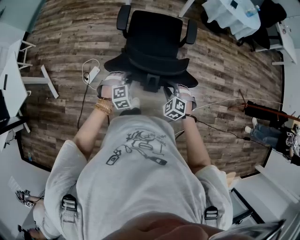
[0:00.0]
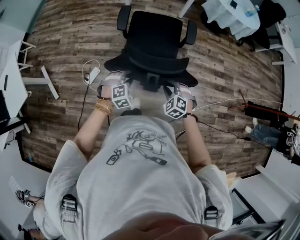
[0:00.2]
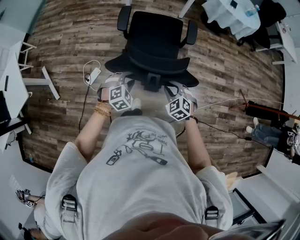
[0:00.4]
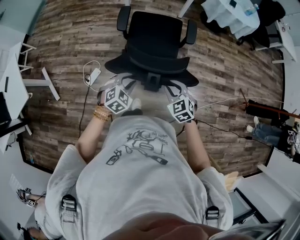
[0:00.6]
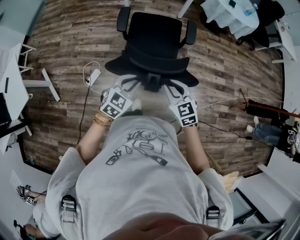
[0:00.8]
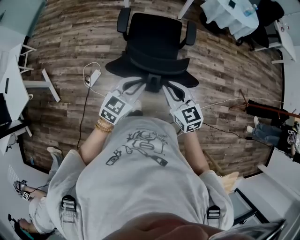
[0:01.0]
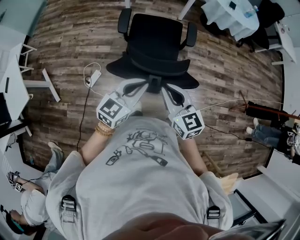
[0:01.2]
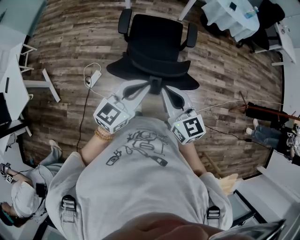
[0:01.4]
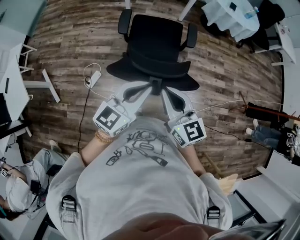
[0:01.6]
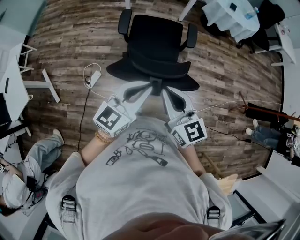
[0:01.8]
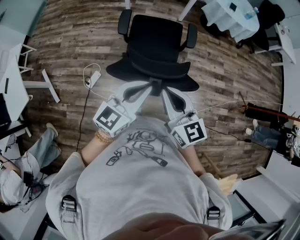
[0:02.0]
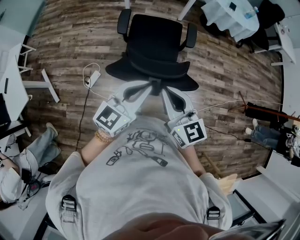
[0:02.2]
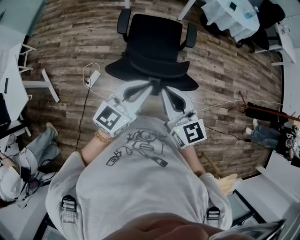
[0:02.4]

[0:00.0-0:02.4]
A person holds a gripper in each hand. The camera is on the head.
0:00.0 to 0:01.2: Both grippers travel together upward, about 25 cm. The left gripper points its fingers some 50 degrees further upward, and closes. The right gripper tilts its fingers roughly 40 degrees upward.
0:01.2 to 0:02.4: The two grippers go some 5 cm upward.

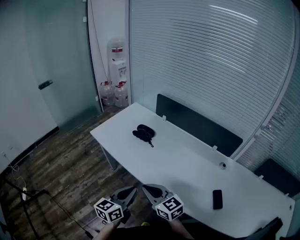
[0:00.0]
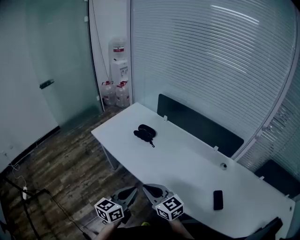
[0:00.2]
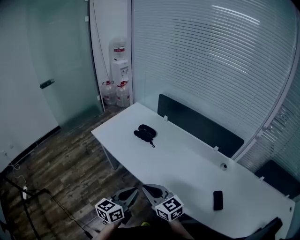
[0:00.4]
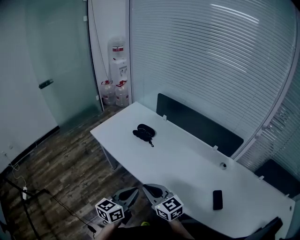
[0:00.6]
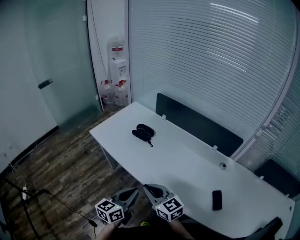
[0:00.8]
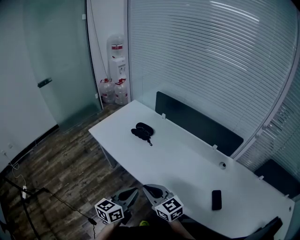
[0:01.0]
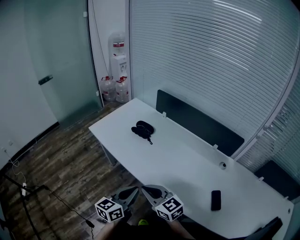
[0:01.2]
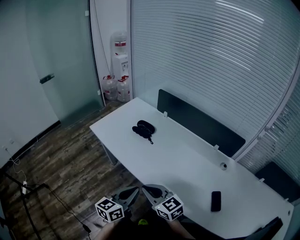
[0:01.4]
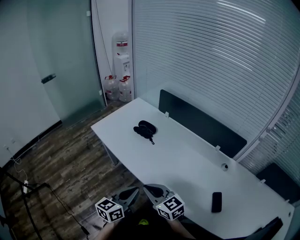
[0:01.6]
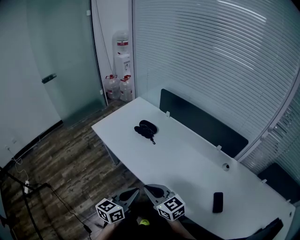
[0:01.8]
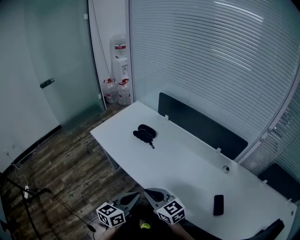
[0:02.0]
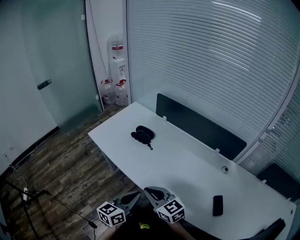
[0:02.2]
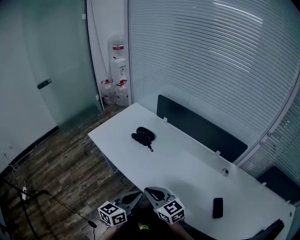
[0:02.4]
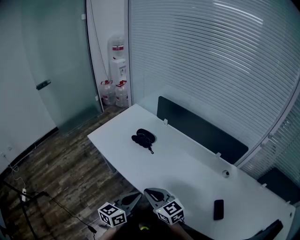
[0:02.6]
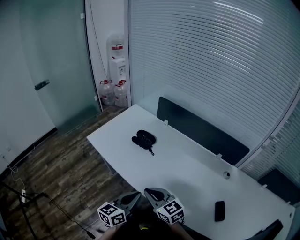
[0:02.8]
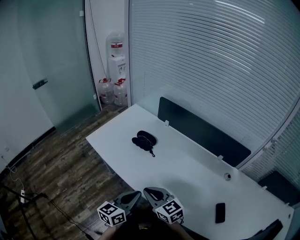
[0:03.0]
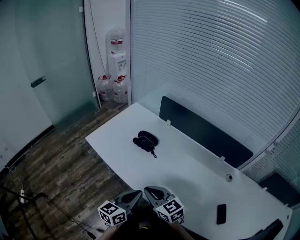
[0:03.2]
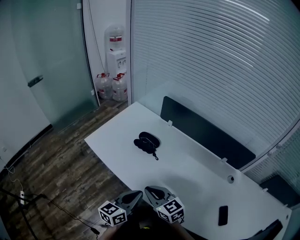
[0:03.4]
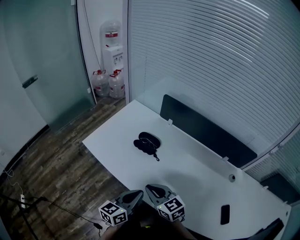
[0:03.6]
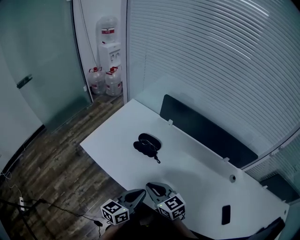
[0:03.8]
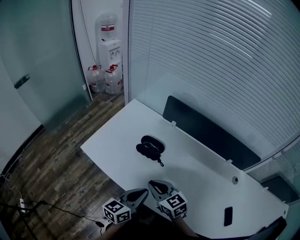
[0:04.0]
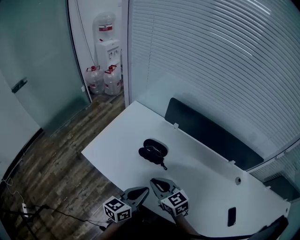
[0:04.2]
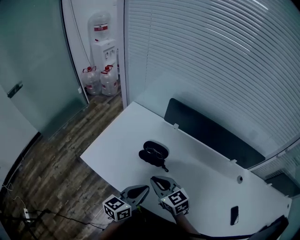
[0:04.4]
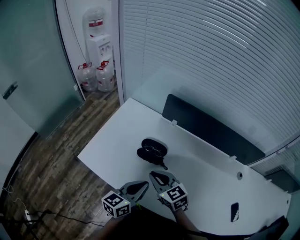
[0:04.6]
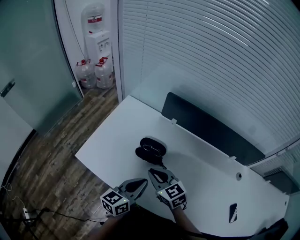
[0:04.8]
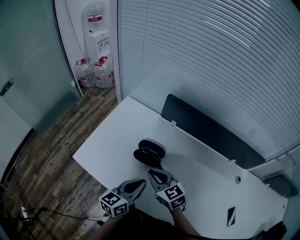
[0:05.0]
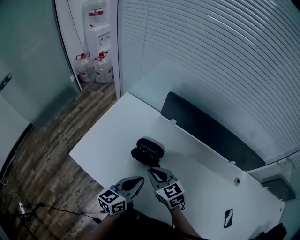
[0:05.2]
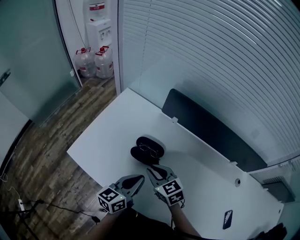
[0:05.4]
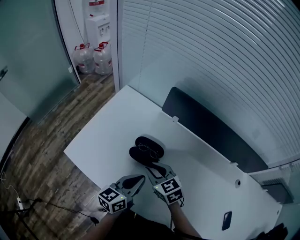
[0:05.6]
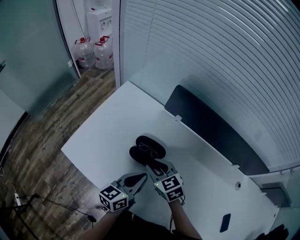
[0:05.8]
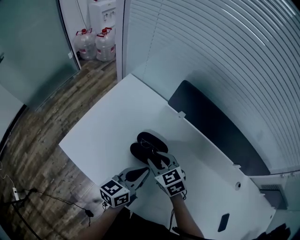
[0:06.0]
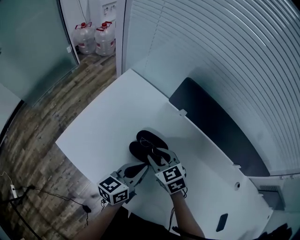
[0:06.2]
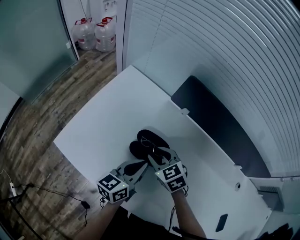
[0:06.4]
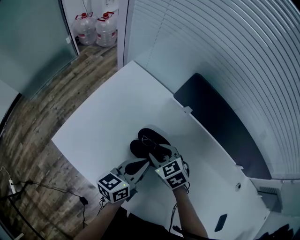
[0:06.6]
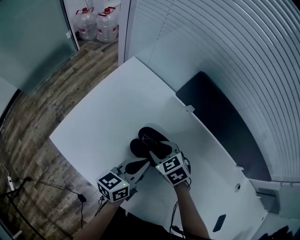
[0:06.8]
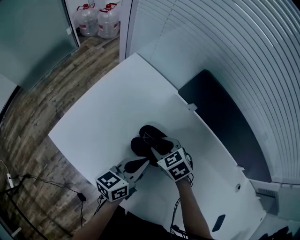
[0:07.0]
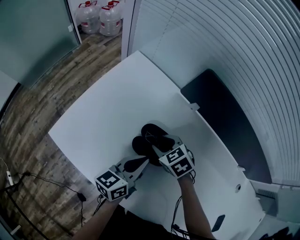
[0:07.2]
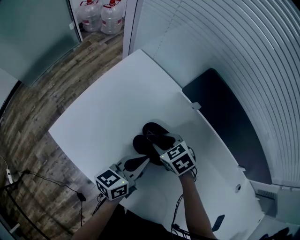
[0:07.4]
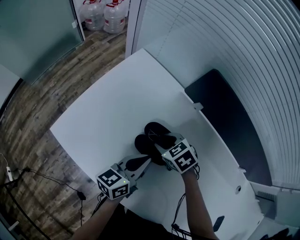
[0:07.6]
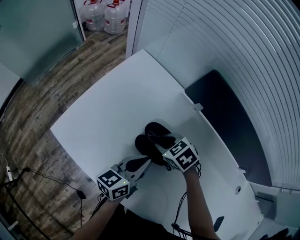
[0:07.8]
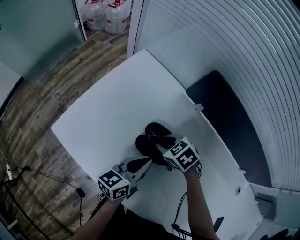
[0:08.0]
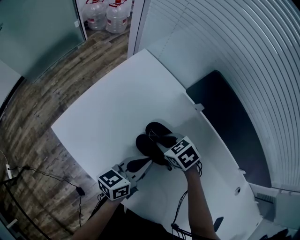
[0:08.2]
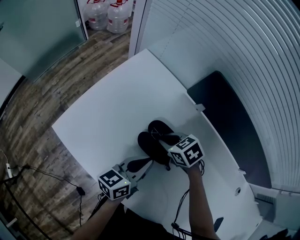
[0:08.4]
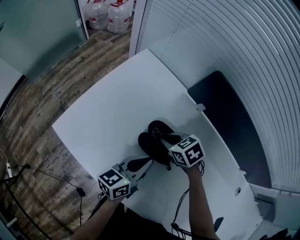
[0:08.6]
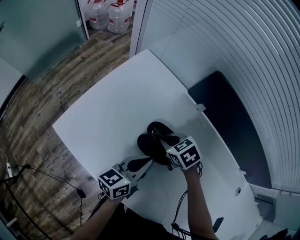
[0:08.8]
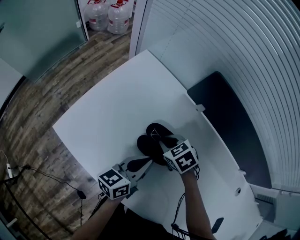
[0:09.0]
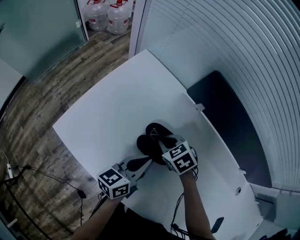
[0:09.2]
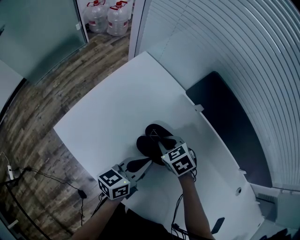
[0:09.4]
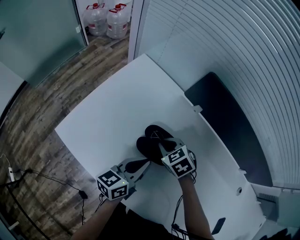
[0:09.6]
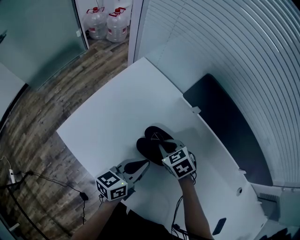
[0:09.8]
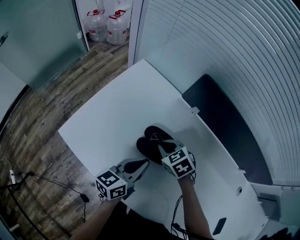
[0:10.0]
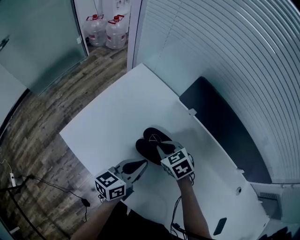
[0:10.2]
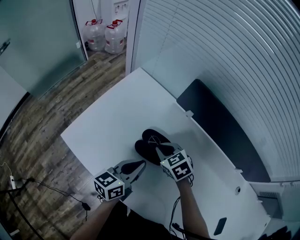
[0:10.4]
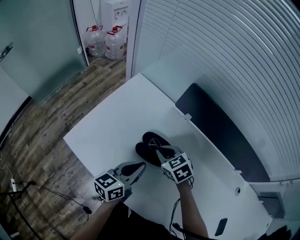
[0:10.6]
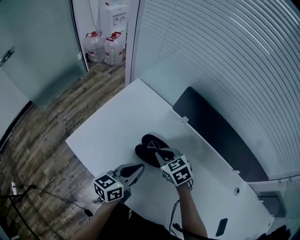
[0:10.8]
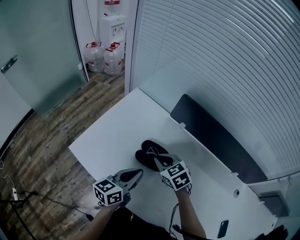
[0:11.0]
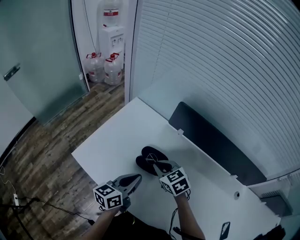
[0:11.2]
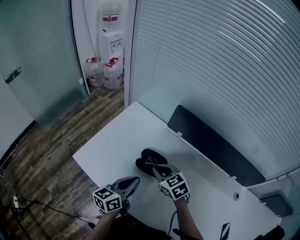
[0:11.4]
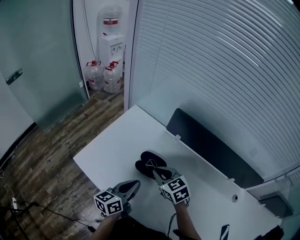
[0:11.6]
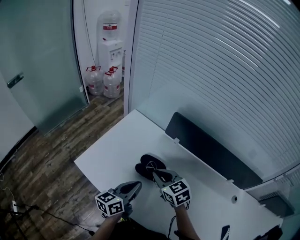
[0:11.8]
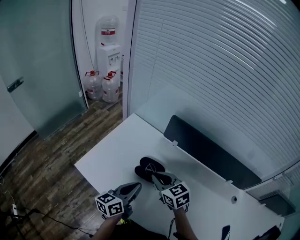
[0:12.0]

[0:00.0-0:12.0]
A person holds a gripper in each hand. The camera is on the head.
0:00.0 to 0:01.6: The grippers move only a little.
0:01.6 to 0:03.0: The two grippers go roughly 10 cm forward.
0:03.0 to 0:04.4: Both grippers move forward, approximately 20 cm.
0:04.4 to 0:06.0: The two grippers go roughly 15 cm forward and downward. The right gripper opens up.
0:06.0 to 0:07.6: The right gripper travels downward by some 5 cm, and turns by some 20 degrees; the left gripper moves some 5 cm.
0:07.6 to 0:09.0: The right gripper closes its fingers.
0:09.0 to 0:10.4: The grippers stay close to where they were, moving slightly.
0:10.4 to 0:12.0: The right gripper travels upward and backward by some 15 cm, and turns by roughly 20 degrees. The left gripper moves upward, some 5 cm.

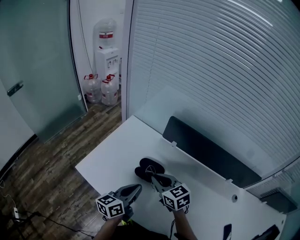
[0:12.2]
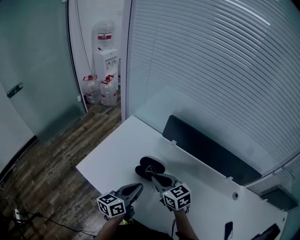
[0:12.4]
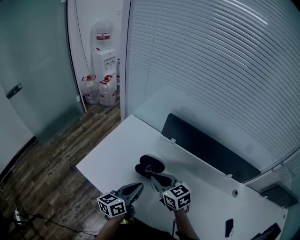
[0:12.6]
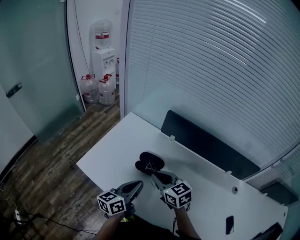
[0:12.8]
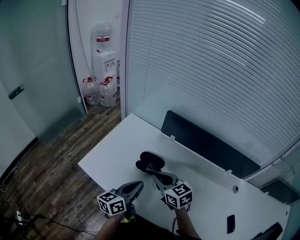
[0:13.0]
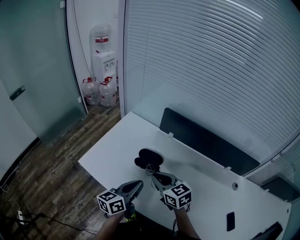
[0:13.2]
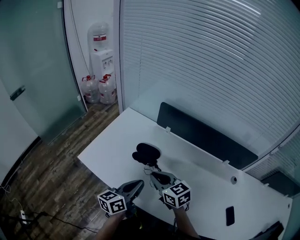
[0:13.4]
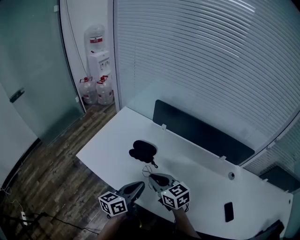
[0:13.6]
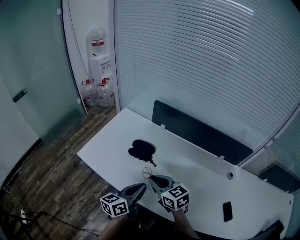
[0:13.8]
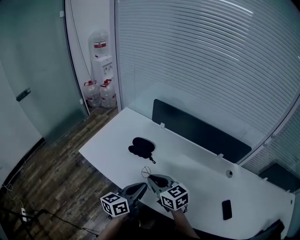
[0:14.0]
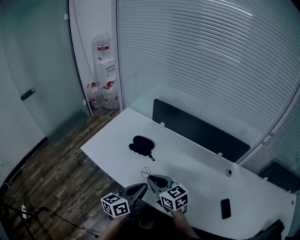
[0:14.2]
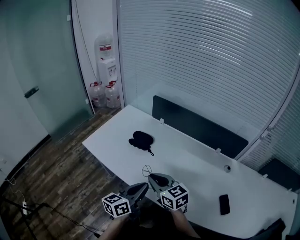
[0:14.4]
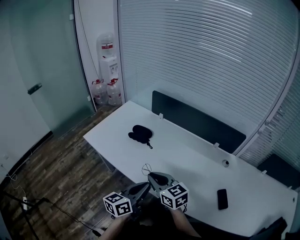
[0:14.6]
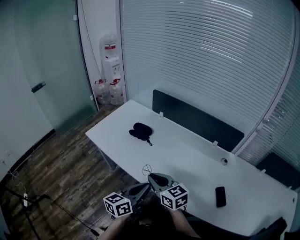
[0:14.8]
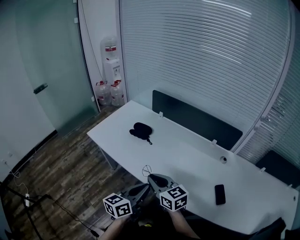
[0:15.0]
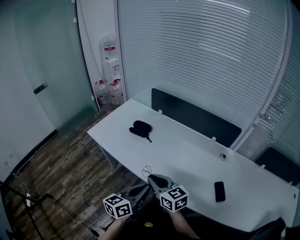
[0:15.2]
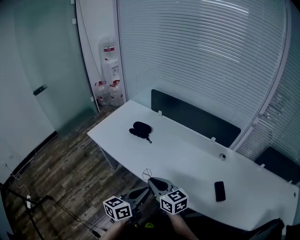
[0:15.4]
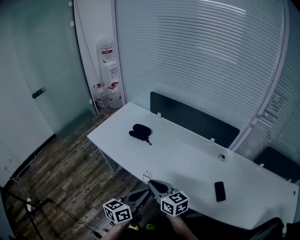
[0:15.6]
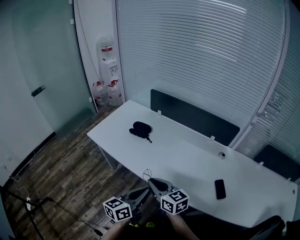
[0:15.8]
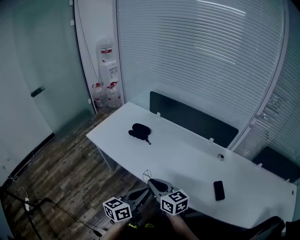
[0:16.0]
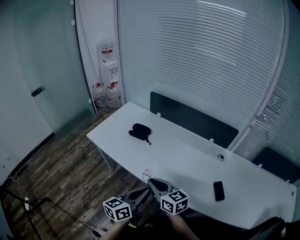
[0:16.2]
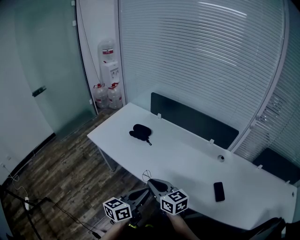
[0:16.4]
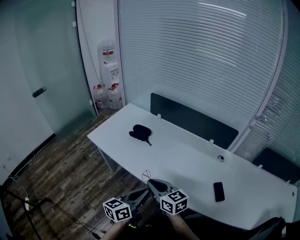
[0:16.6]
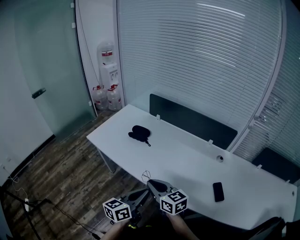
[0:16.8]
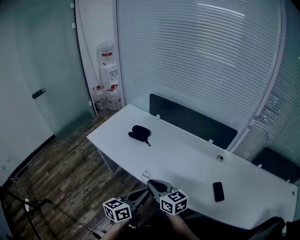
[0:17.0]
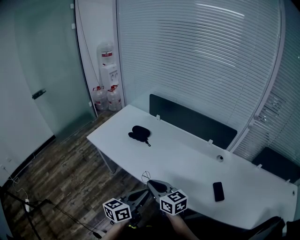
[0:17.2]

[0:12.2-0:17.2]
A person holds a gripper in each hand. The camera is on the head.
0:12.2 to 0:13.8: The left gripper moves backward and to the right, some 15 cm; the right gripper goes some 15 cm backward.
0:13.8 to 0:15.6: The two grippers go roughly 20 cm backward.
0:15.6 to 0:17.2: Both grippers stay about where they are.

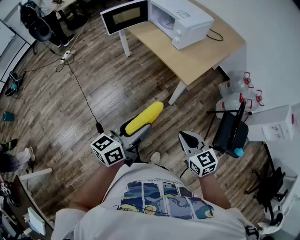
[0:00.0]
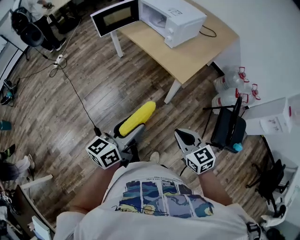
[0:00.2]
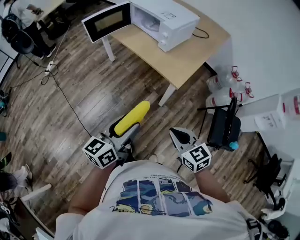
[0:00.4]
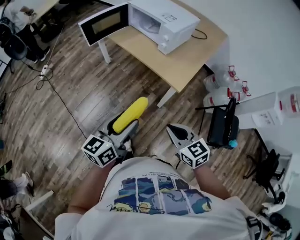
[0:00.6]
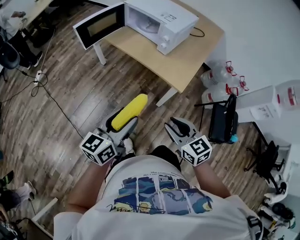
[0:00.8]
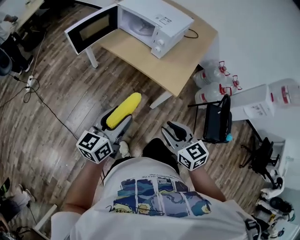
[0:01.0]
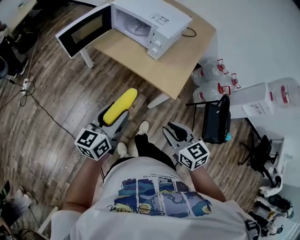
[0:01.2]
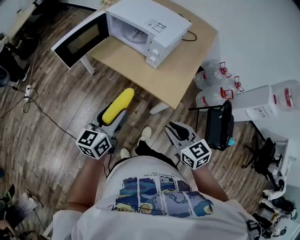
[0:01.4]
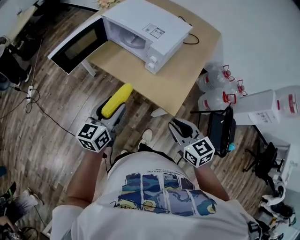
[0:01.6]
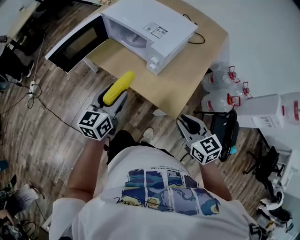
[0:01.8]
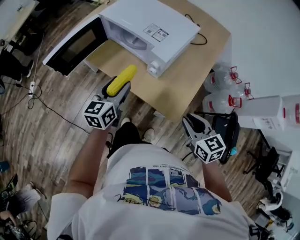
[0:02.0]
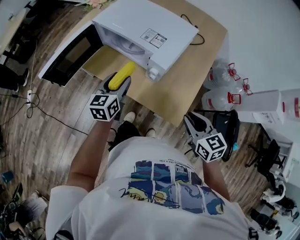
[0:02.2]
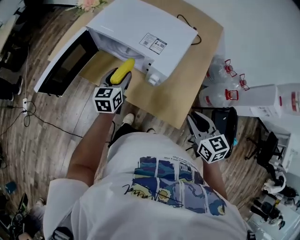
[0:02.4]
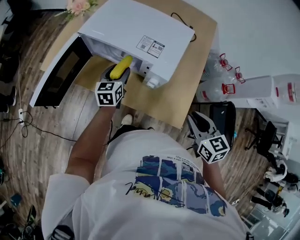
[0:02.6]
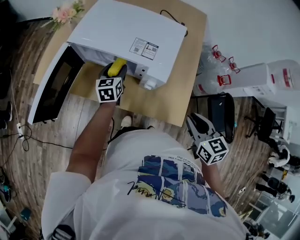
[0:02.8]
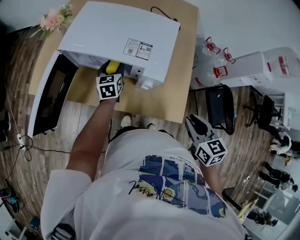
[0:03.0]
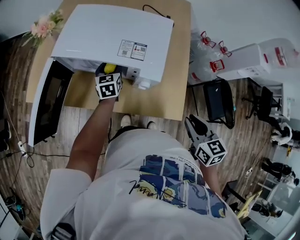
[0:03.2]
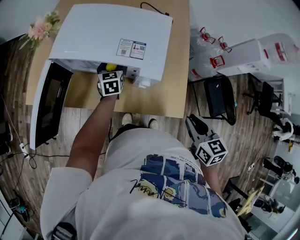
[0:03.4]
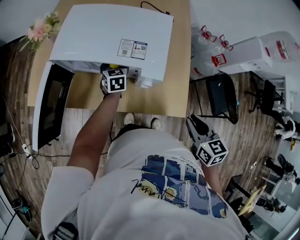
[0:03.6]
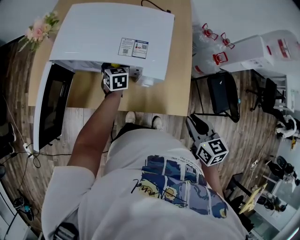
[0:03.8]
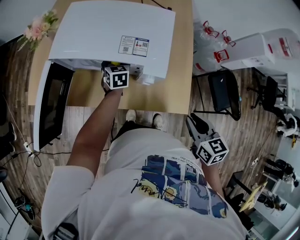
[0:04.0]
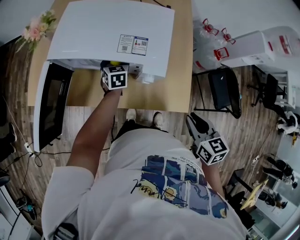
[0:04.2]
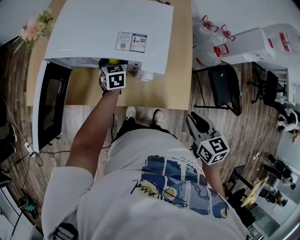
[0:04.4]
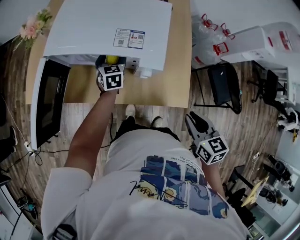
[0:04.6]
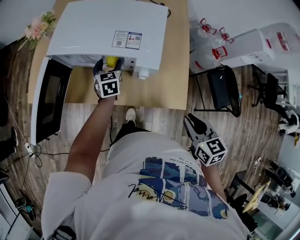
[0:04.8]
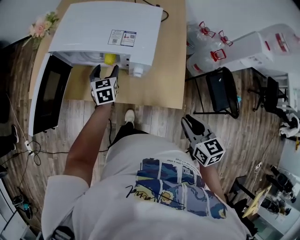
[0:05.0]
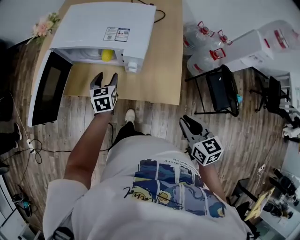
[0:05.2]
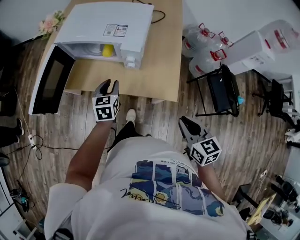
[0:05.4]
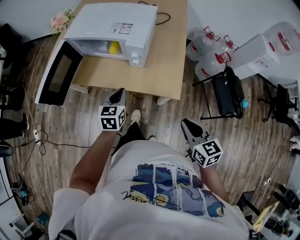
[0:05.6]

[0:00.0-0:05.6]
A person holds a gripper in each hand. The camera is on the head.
0:00.0 to 0:01.4: Both grippers travel together forward, about 30 cm.
0:01.4 to 0:02.8: The left gripper goes about 40 cm forward. The right gripper goes about 20 cm forward, and swivels approximately 30 degrees.
0:02.8 to 0:04.2: The left gripper moves forward, roughly 5 cm.
0:04.2 to 0:05.6: The right gripper goes some 15 cm backward. The left gripper shifts some 30 cm backward, and closes its fingers.
